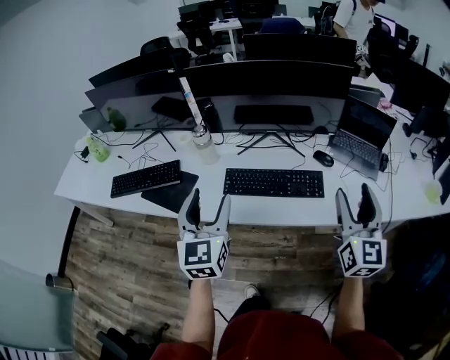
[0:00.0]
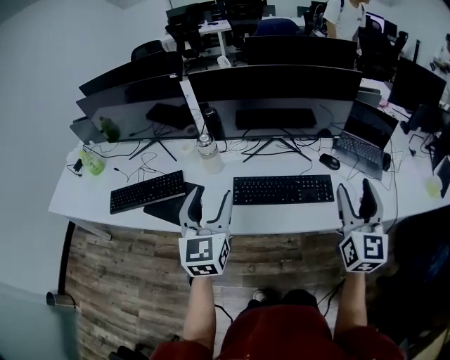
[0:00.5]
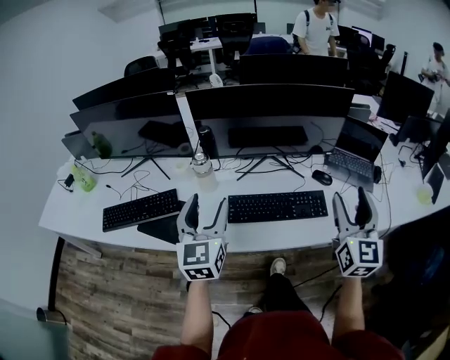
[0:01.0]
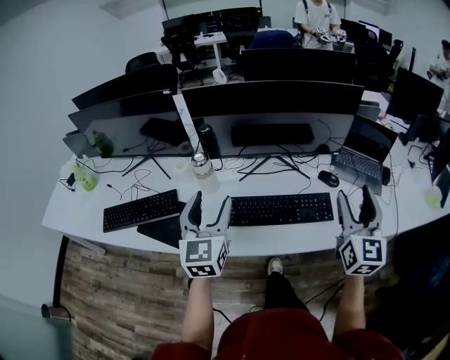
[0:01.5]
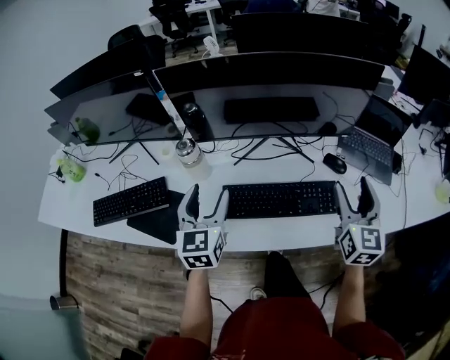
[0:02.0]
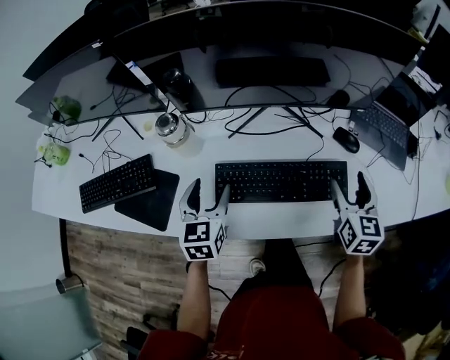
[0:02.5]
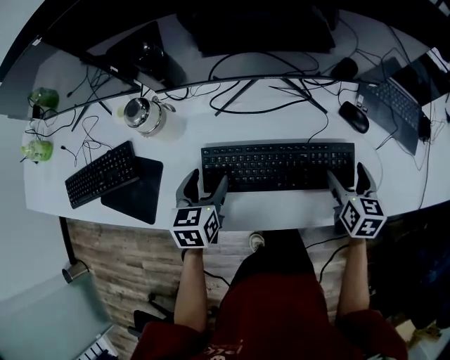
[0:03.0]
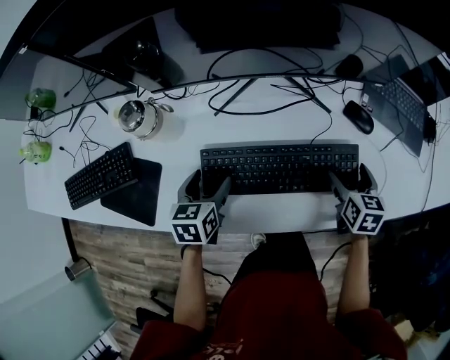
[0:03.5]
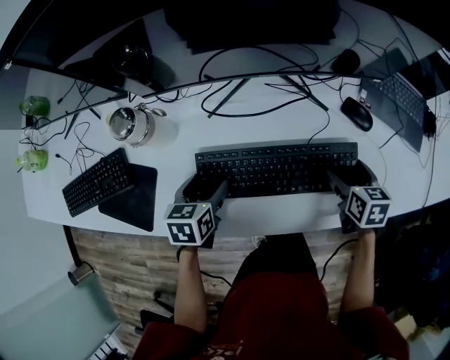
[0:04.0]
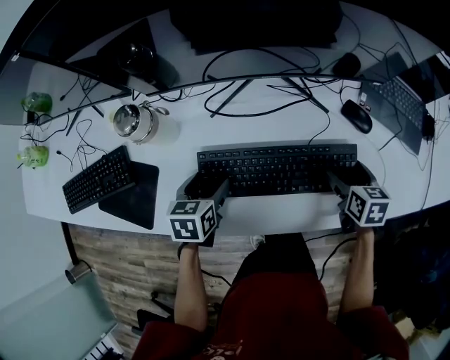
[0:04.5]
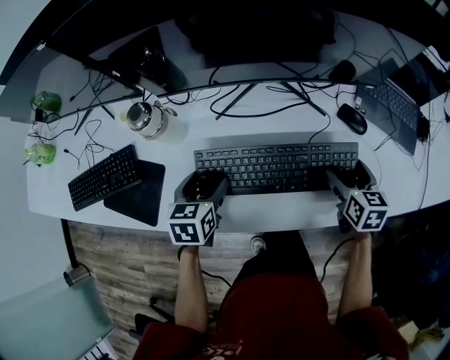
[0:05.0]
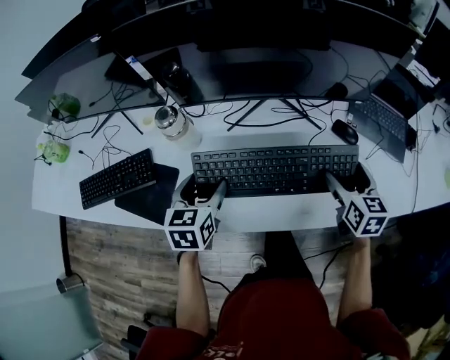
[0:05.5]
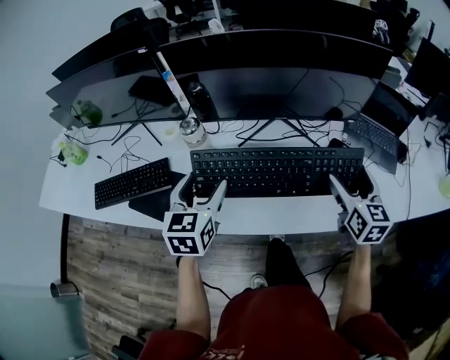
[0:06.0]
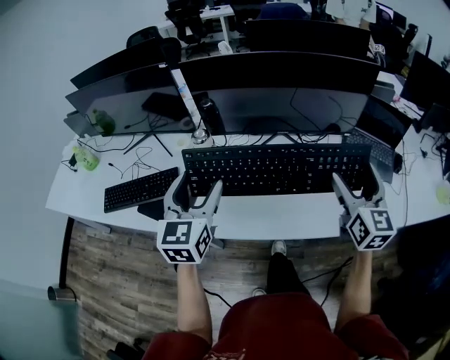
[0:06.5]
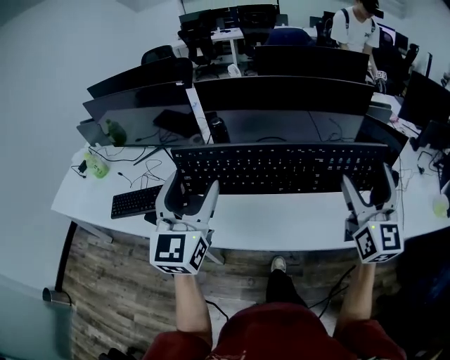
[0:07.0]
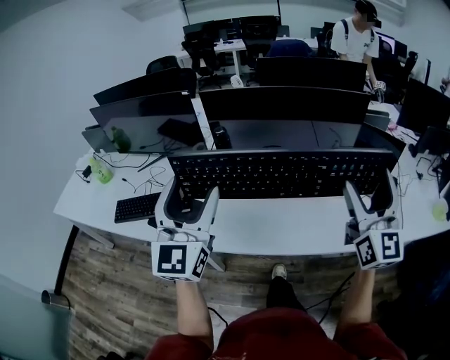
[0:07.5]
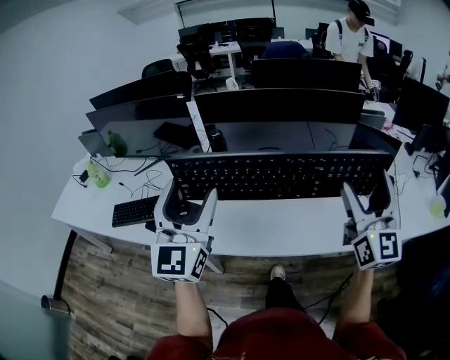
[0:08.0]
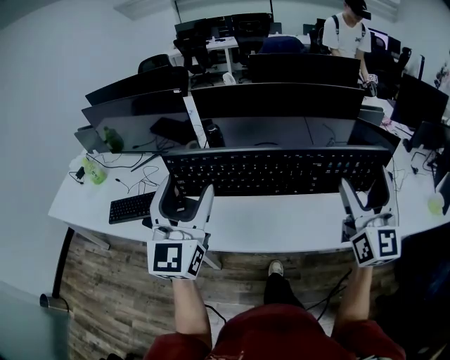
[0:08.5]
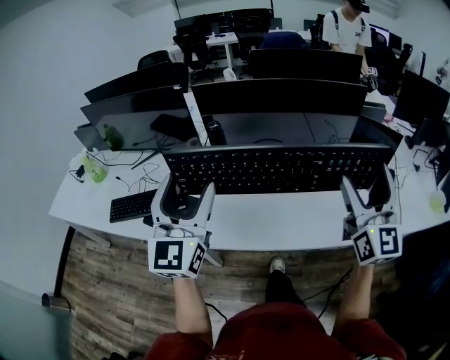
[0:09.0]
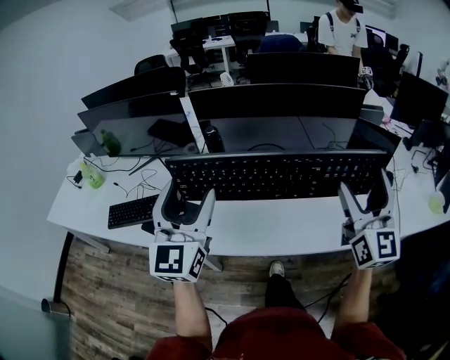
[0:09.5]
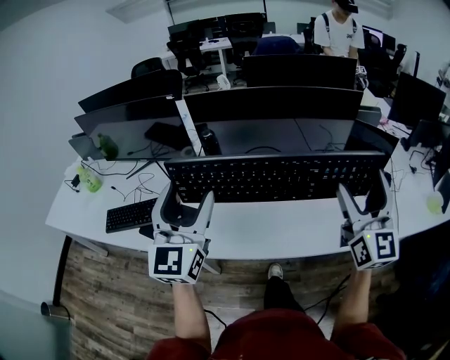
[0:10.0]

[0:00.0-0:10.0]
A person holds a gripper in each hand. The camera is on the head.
0:00.0 to 0:02.0: Both grippers travel together forward and downward, some 20 cm.
0:02.0 to 0:04.0: Both grippers travel together downward, approximately 25 cm. The left gripper tilts its fingers some 40 degrees downward. The right gripper angles its fingers downward, by approximately 40 degrees.
0:04.0 to 0:06.0: Both grippers move upward, approximately 25 cm. The right gripper angles its fingers upward, by approximately 30 degrees; the left gripper rotates approximately 30 degrees.
0:06.0 to 0:08.0: The grippers both shift upward and backward by roughly 25 cm. The right gripper tips its fingers upward by about 40 degrees. Meanwhile the left gripper angles its fingers upward, by about 40 degrees.
0:08.0 to 0:10.0: Both grippers stay about where they are.

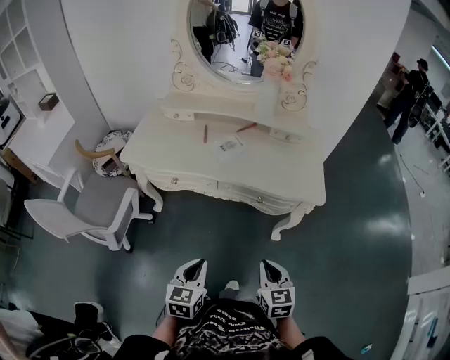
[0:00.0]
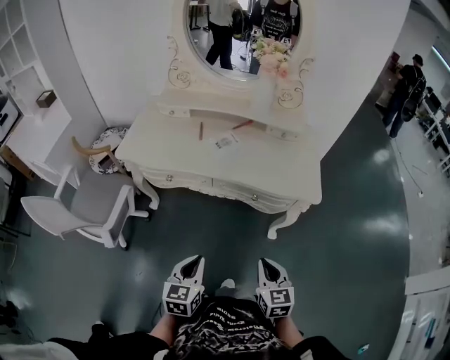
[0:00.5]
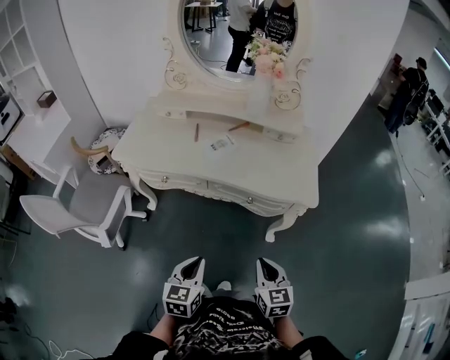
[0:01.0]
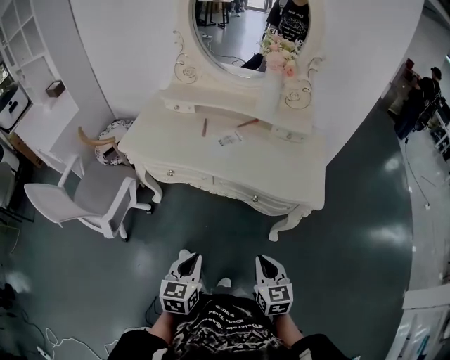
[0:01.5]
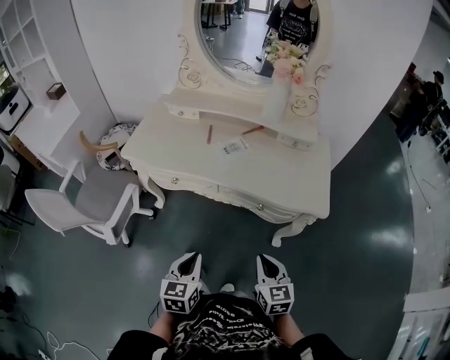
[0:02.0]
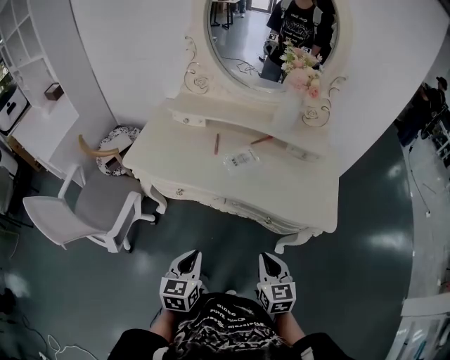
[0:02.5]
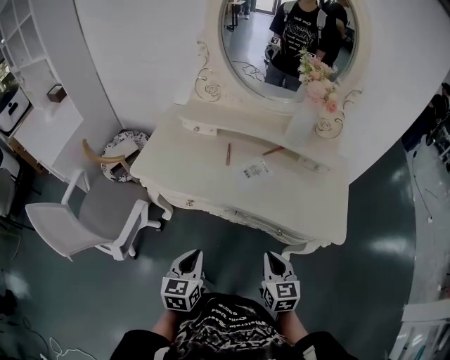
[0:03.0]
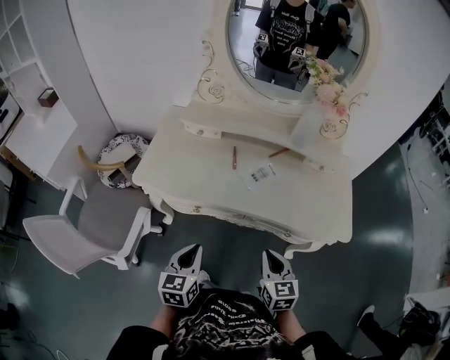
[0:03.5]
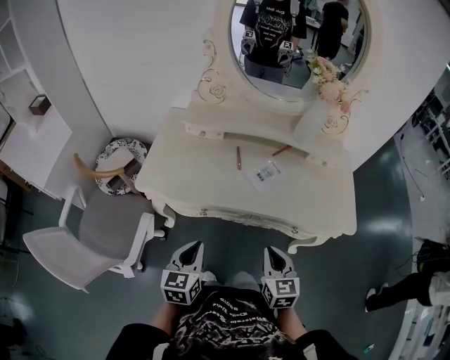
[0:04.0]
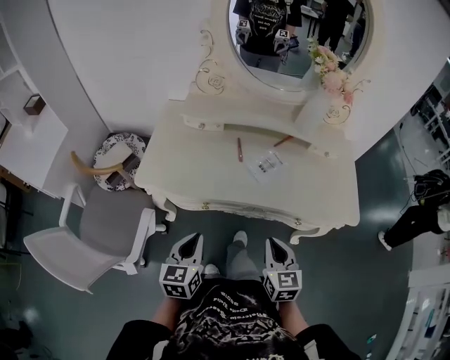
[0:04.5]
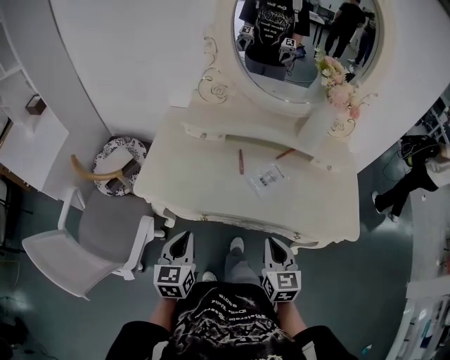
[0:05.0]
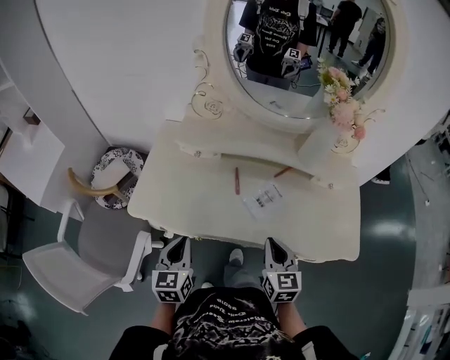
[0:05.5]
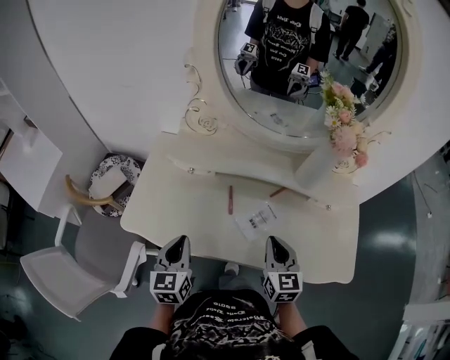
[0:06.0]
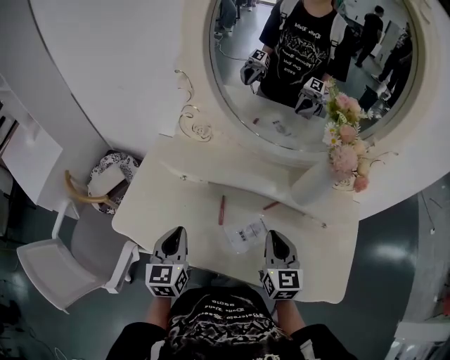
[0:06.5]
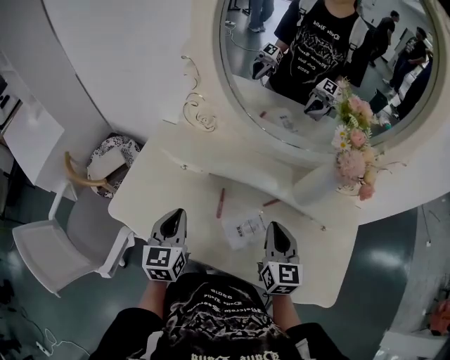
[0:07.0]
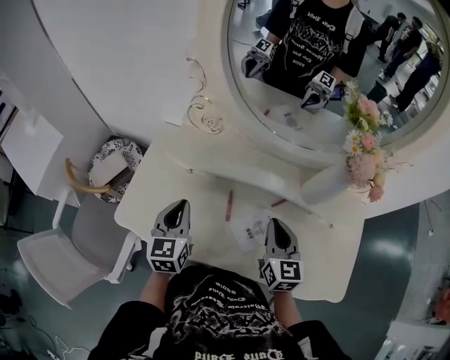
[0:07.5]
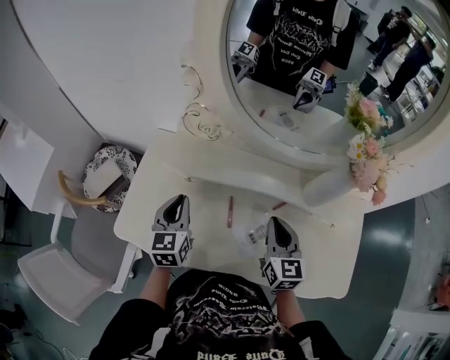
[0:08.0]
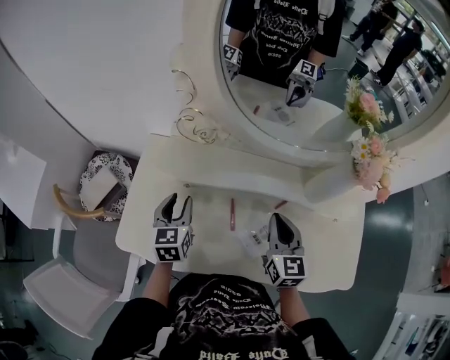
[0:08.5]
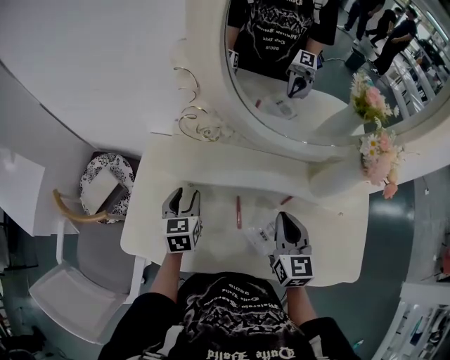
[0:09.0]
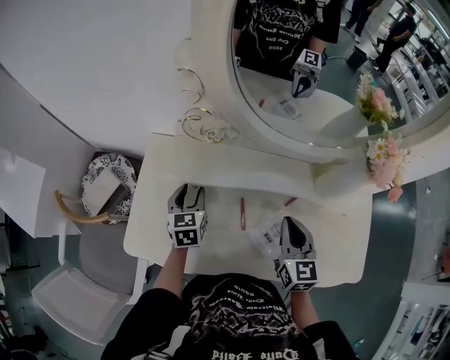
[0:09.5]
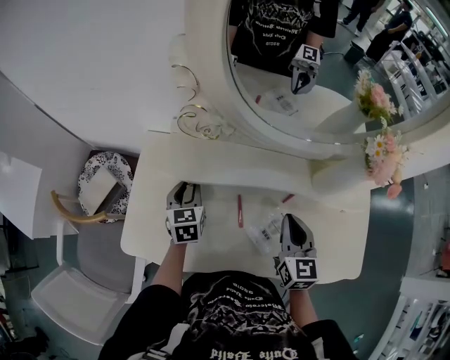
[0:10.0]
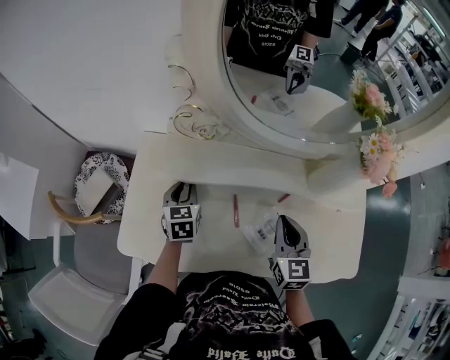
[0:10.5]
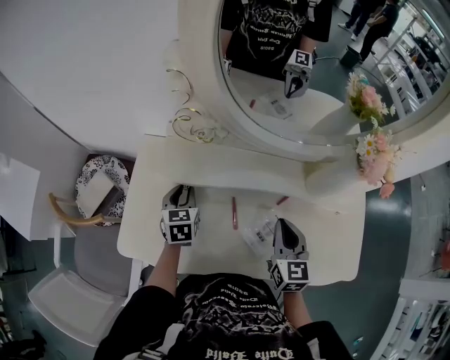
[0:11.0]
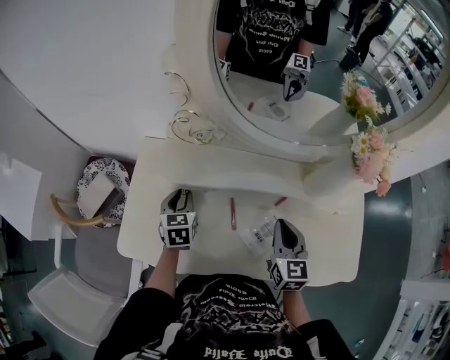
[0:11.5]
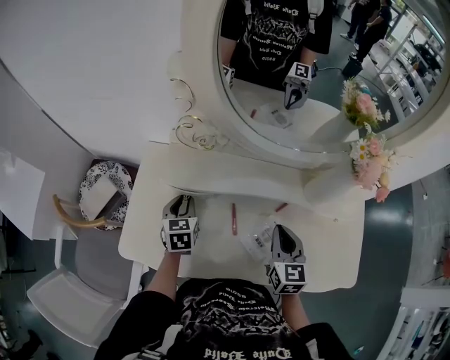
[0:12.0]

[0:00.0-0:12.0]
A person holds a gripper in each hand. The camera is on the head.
0:00.0 to 0:02.0: The right gripper is displaced forward by roughly 5 cm.
0:02.0 to 0:04.0: The left gripper goes roughly 25 cm forward and to the left. Meanwhile the right gripper heads to the left and forward, covering about 20 cm.
0:04.0 to 0:06.0: Both grippers move forward, approximately 20 cm.
0:06.0 to 0:08.0: Both grippers move forward, approximately 15 cm.
0:08.0 to 0:10.0: The left gripper is displaced downward and forward by about 10 cm, and opens up.
0:10.0 to 0:12.0: The grippers make only small movements.

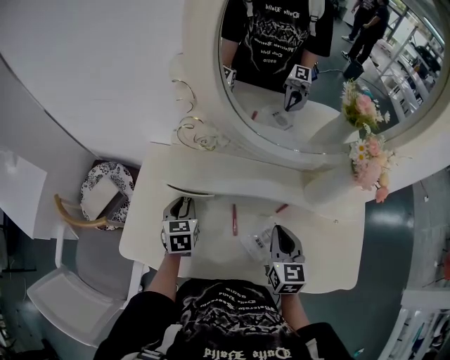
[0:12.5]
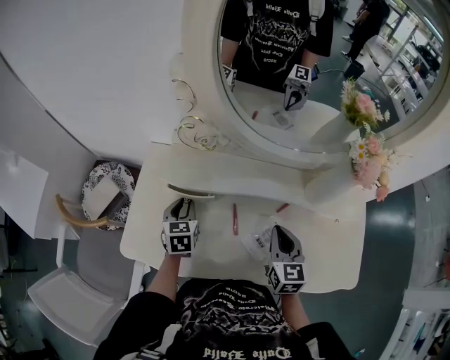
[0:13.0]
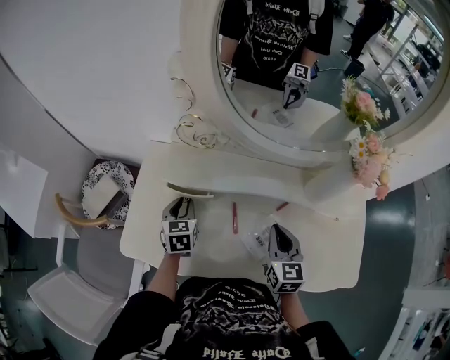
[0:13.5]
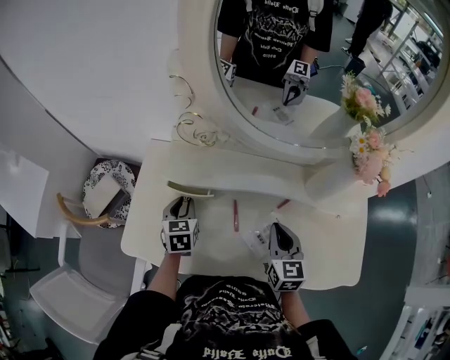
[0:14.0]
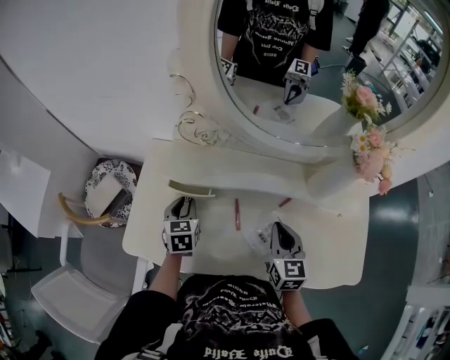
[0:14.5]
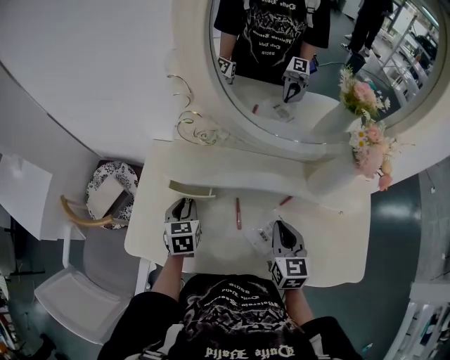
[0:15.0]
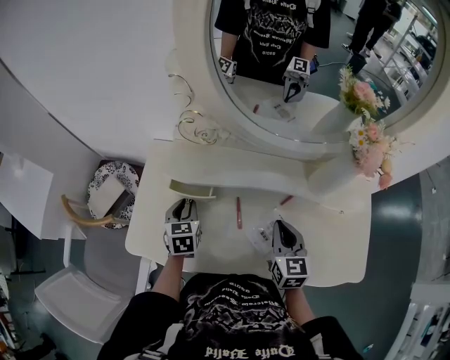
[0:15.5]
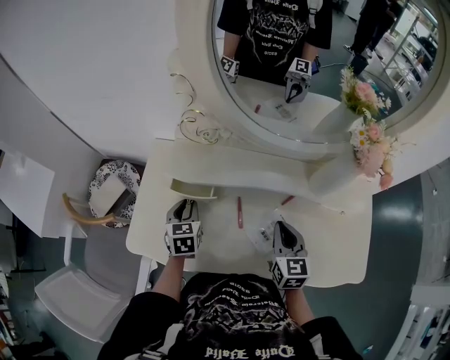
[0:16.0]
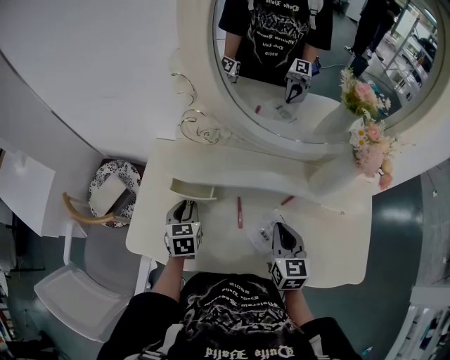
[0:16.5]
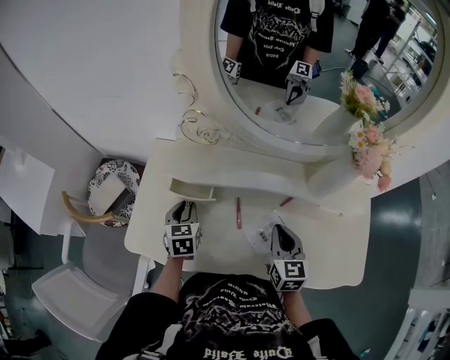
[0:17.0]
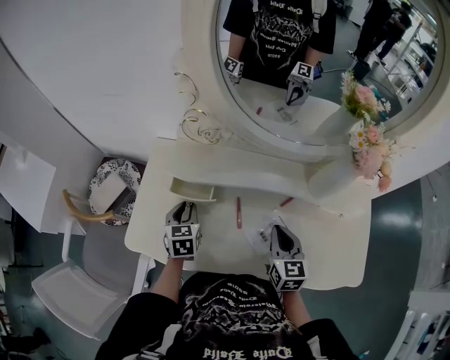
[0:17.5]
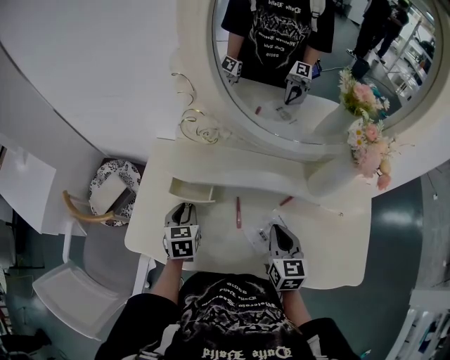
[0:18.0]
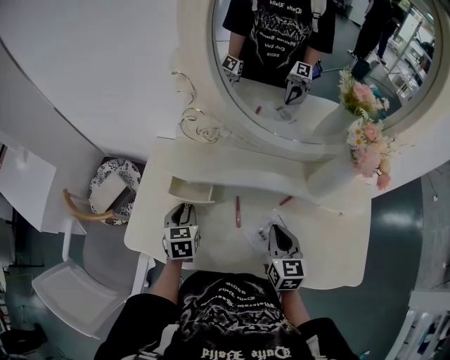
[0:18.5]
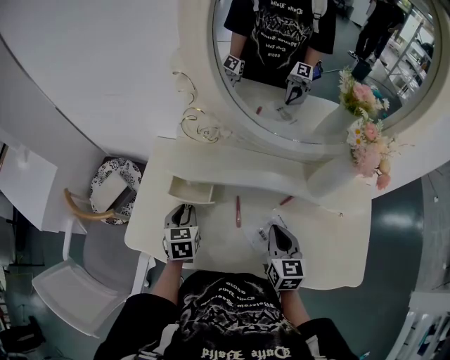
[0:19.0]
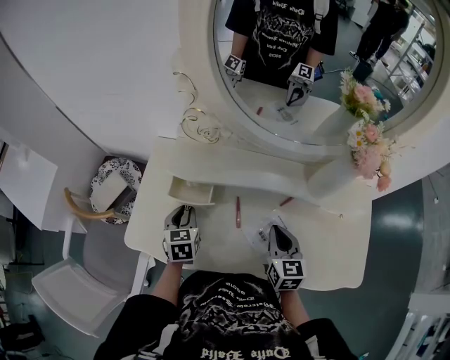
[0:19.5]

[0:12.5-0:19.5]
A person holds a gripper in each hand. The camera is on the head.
0:12.5 to 0:14.5: The grippers stay close to where they were, moving slightly.
0:14.5 to 0:16.0: The two grippers keep their place.
0:16.0 to 0:17.5: Neither gripper changes place.
0:17.5 to 0:19.5: The grippers make only small movements.
